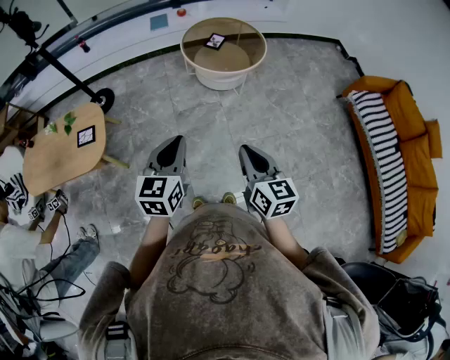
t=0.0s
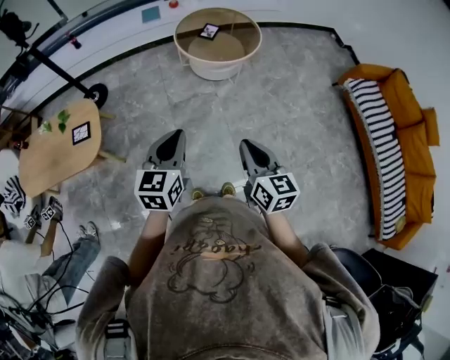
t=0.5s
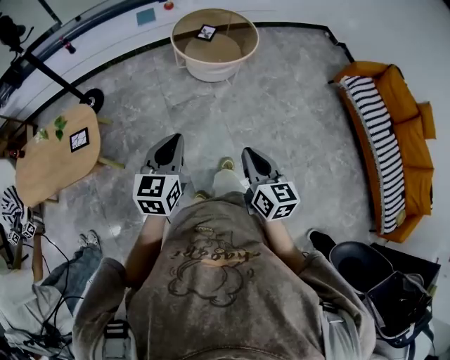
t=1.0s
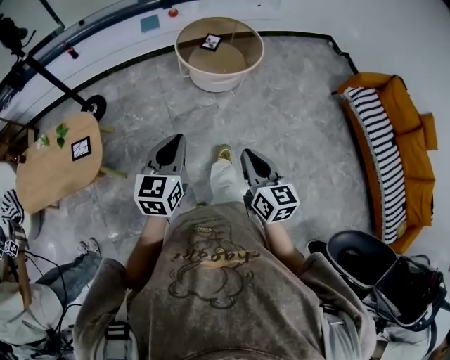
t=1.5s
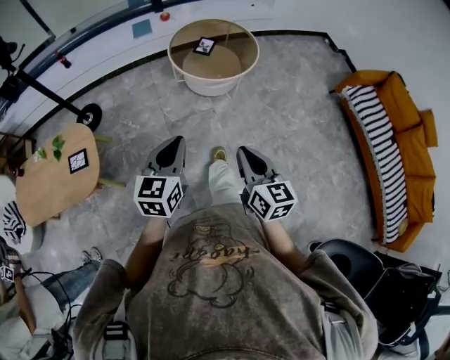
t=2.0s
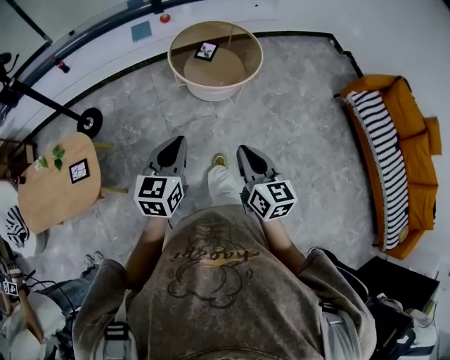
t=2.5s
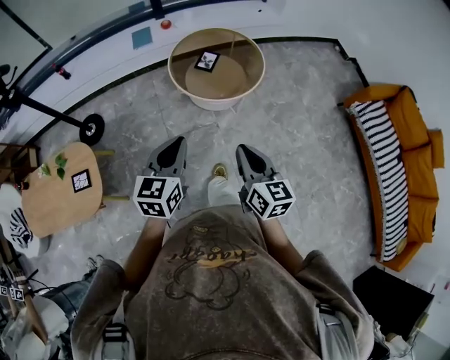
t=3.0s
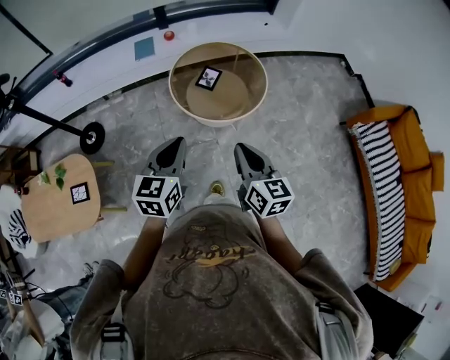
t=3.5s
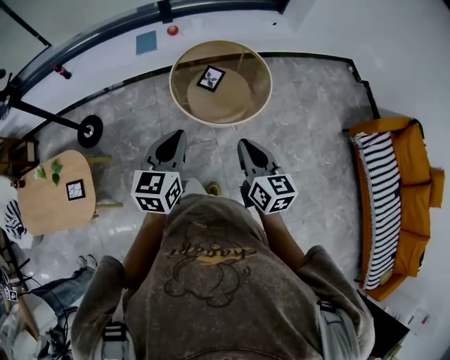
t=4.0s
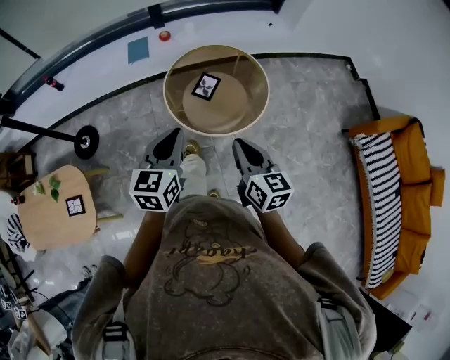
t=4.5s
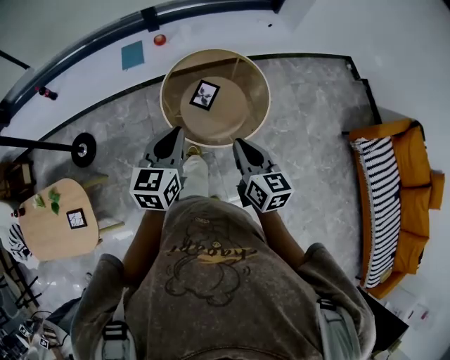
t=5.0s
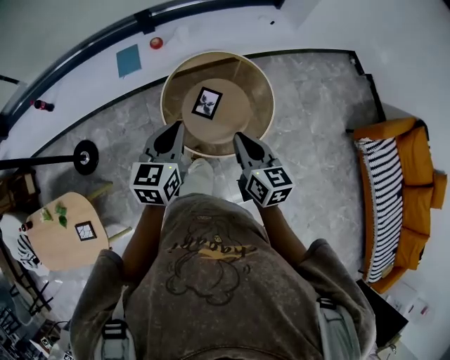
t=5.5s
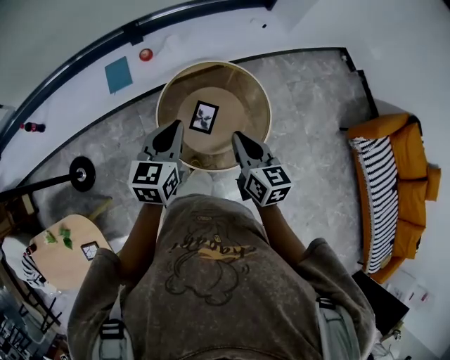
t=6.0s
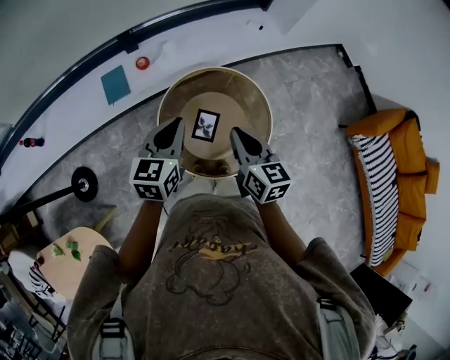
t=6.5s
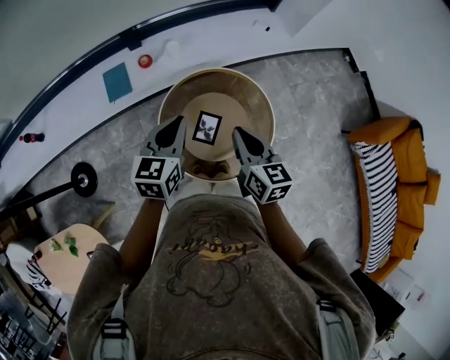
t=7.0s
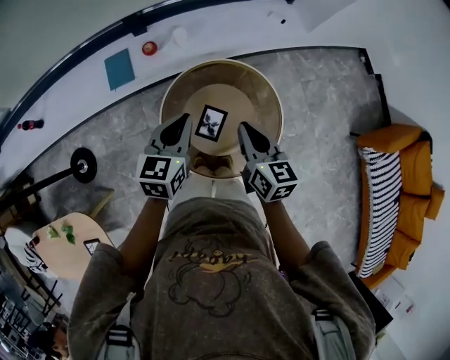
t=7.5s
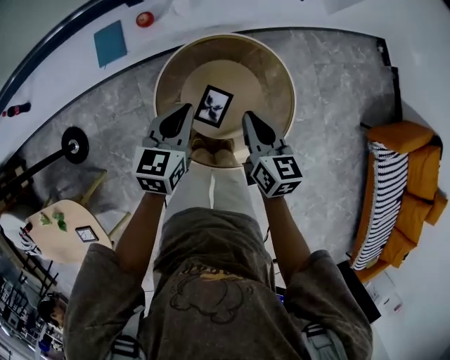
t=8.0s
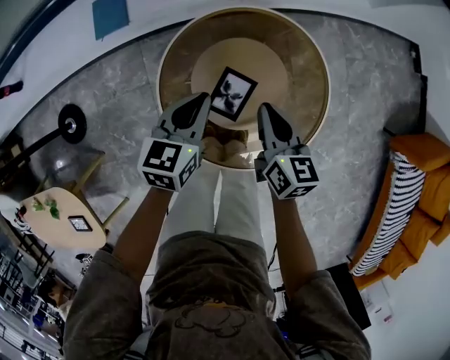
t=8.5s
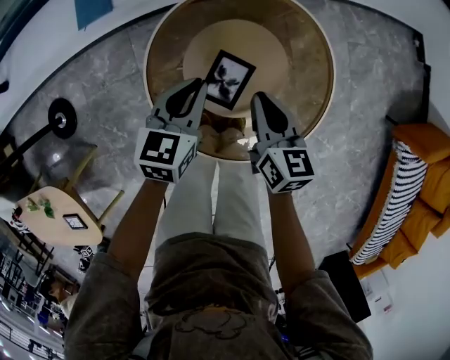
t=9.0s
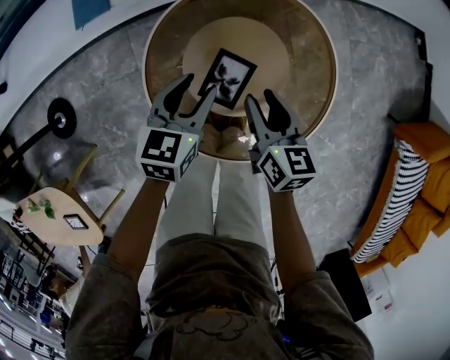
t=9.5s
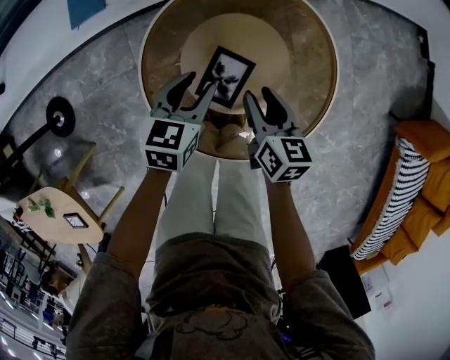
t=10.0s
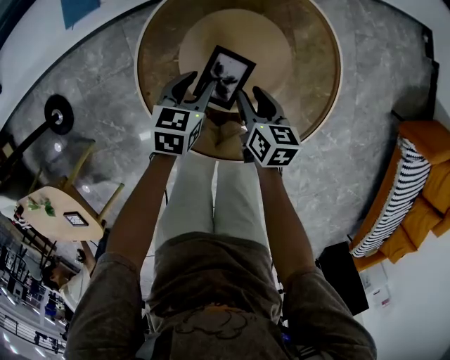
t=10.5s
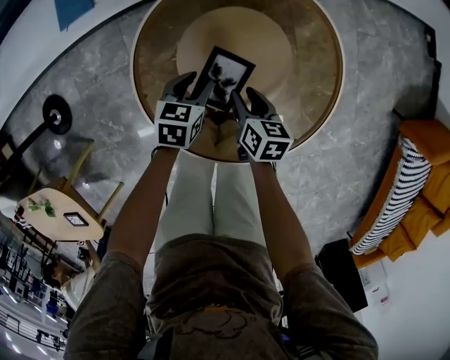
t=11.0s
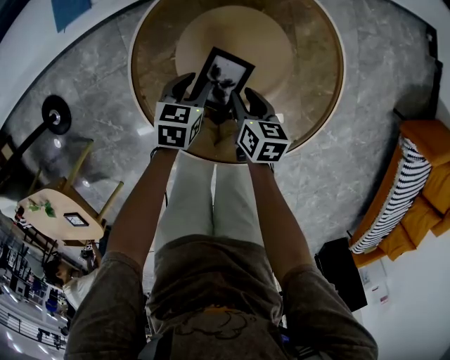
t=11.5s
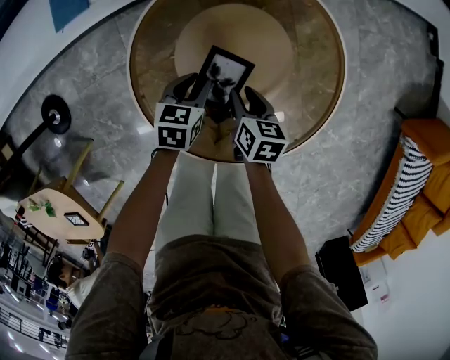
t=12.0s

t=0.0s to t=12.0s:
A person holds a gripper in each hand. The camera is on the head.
t=0.0s to t=2.0s: Both grippers travel together forward, approximately 10 cm.
t=2.0s to t=4.0s: Both grippers travel together forward, roughly 30 cm.
t=4.0s to t=6.0s: The grippers both shift forward by approximately 35 cm.
t=6.0s to t=8.0s: The right gripper heads forward and downward, covering some 20 cm. The left gripper heads downward and forward, covering about 20 cm.
t=8.0s to t=10.0s: Both grippers move downward, about 20 cm. The right gripper opens up, while the left gripper opens.
t=10.0s to t=12.0s: Both grippers move downward, some 10 cm.

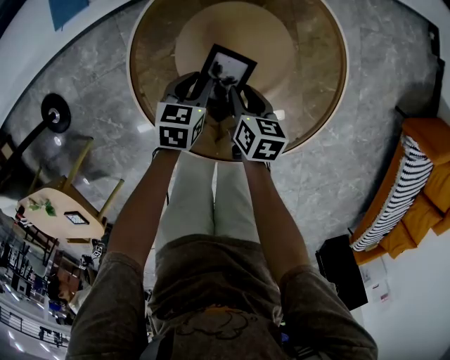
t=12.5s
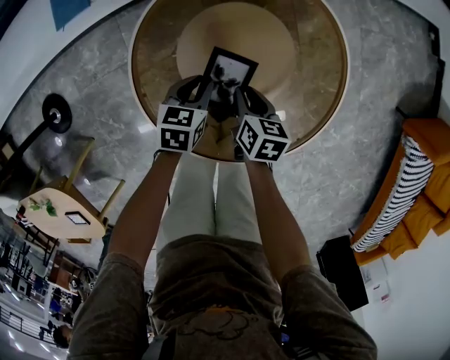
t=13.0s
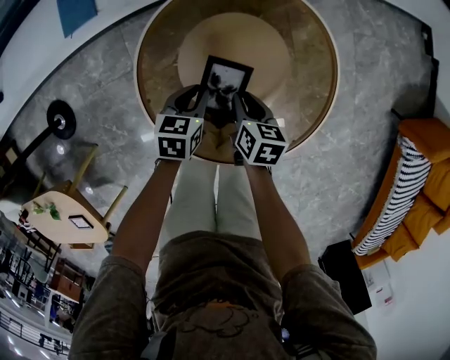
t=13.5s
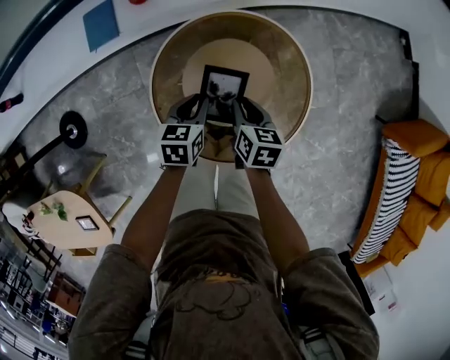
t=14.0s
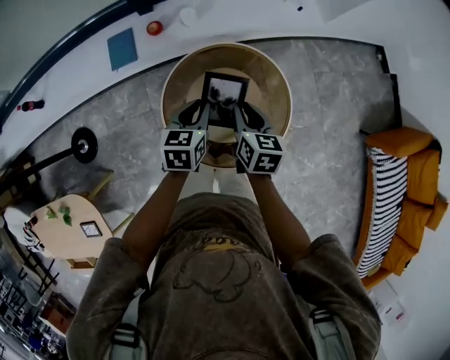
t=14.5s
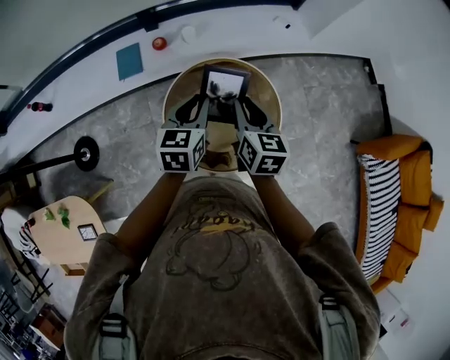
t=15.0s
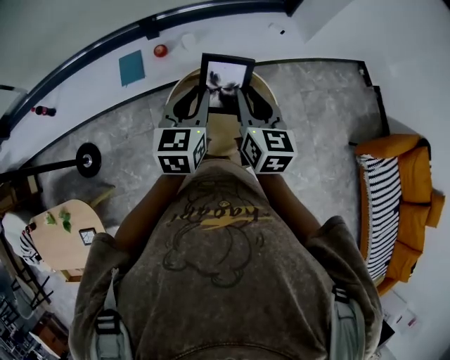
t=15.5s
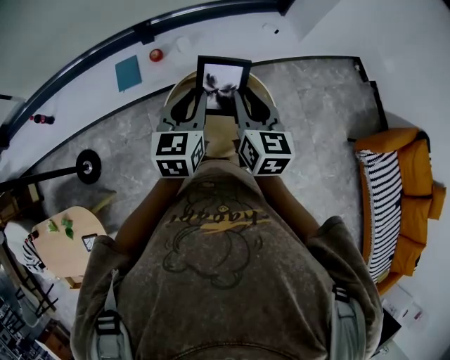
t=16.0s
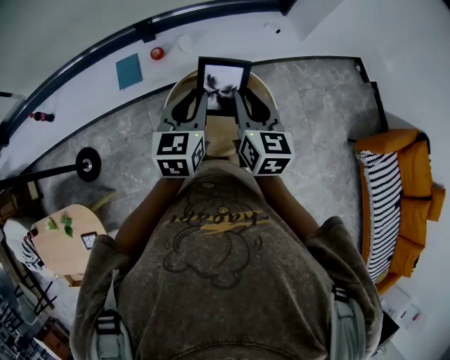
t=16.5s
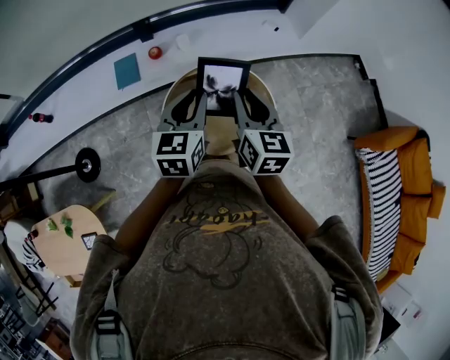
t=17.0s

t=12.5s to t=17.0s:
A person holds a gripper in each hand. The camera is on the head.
t=12.5s to t=14.5s: The two grippers go some 35 cm upward.
t=14.5s to t=17.0s: Both grippers move upward, approximately 20 cm. The left gripper swivels some 20 degrees, while the right gripper changes its angle by roughly 20 degrees.

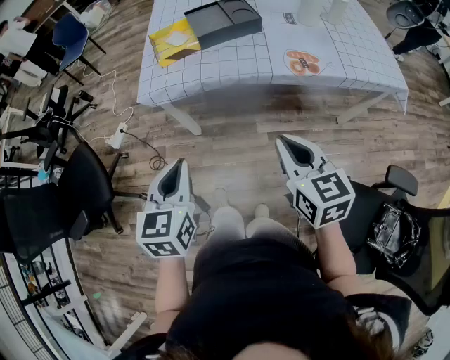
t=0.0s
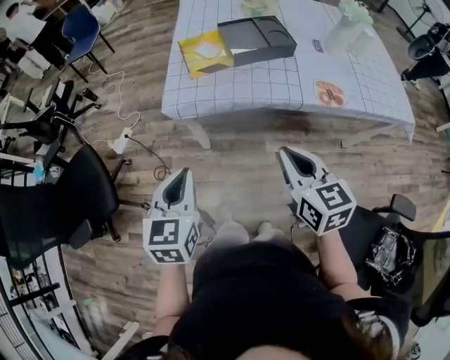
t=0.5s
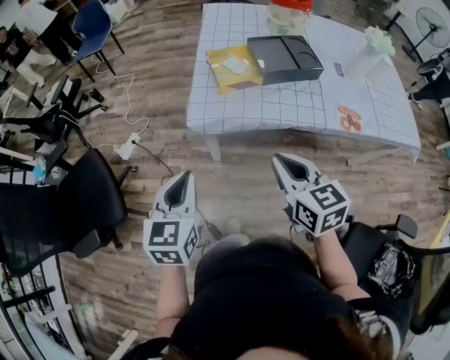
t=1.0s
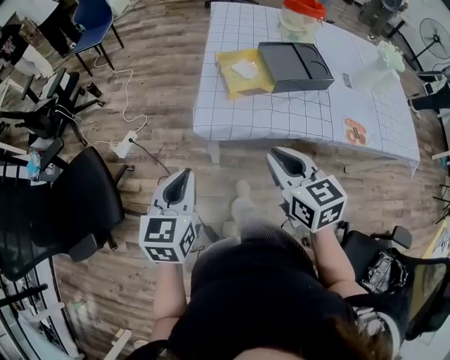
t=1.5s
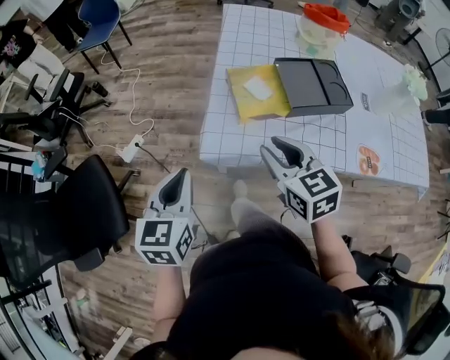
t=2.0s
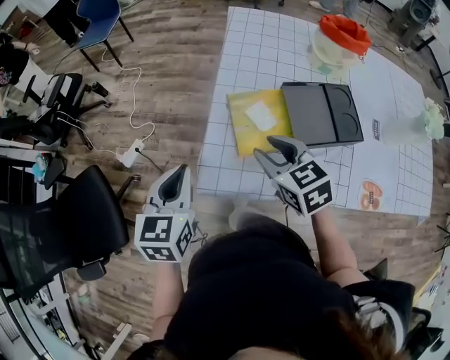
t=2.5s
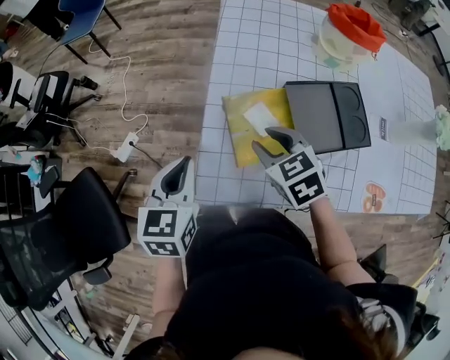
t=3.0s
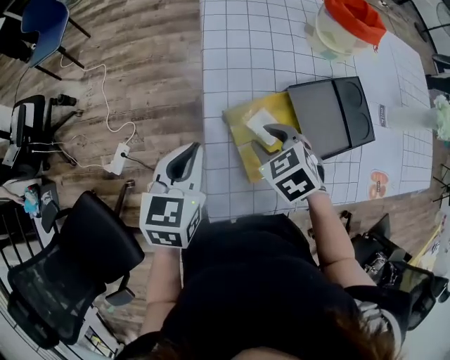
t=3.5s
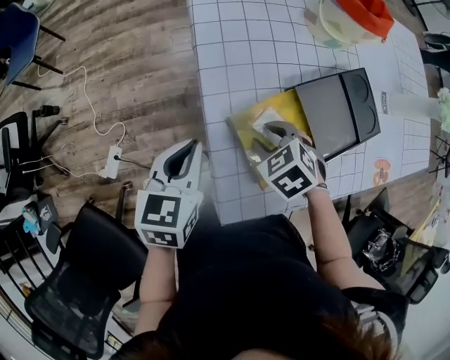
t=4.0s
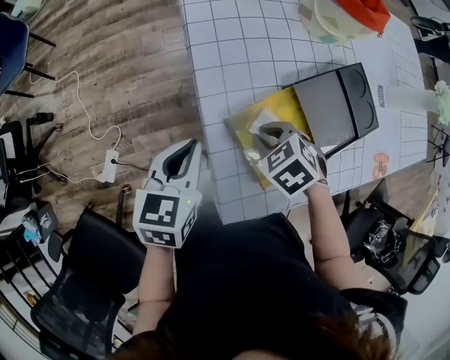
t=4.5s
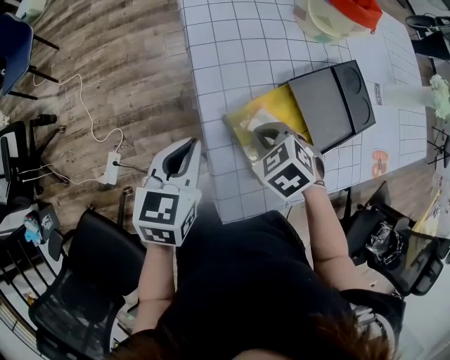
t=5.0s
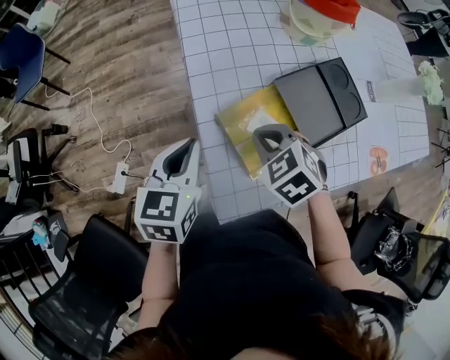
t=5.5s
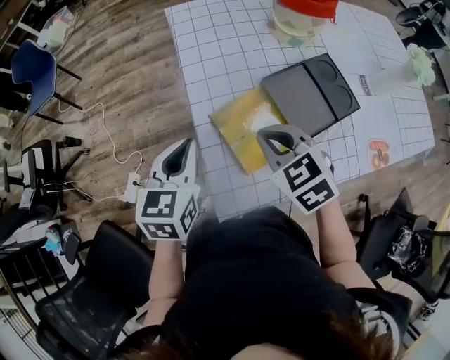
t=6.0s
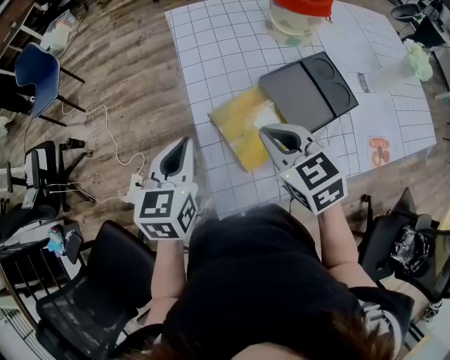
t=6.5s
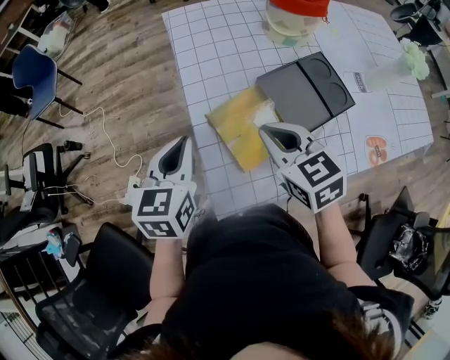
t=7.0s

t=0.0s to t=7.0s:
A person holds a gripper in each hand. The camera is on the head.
t=0.0s to t=2.0s: The grippers both shift forward and to the left by roughly 40 cm. The right gripper opens its fingers.
t=2.0s to t=3.5s: The right gripper is displaced forward and downward by about 25 cm, and points its fingers approximately 30 degrees further downward. Meanwhile the left gripper shifts about 30 cm forward.
t=3.5s to t=5.0s: The right gripper closes its fingers.
t=5.0s to t=7.0s: The left gripper heads upward, covering some 10 cm, while the right gripper moves upward, roughly 15 cm, and angles its fingers upward, by about 40 degrees.

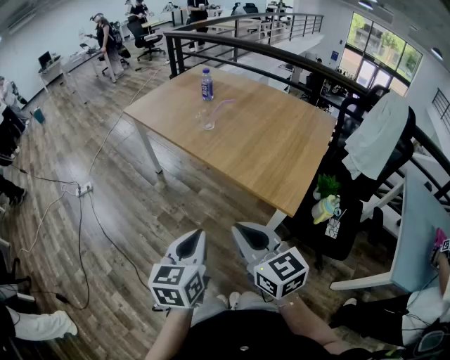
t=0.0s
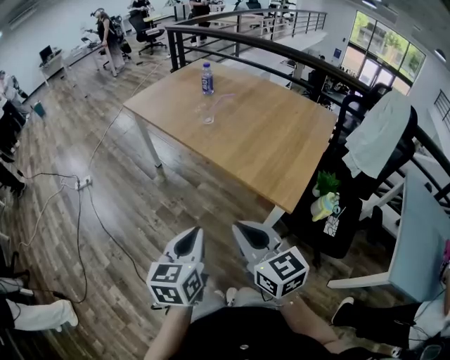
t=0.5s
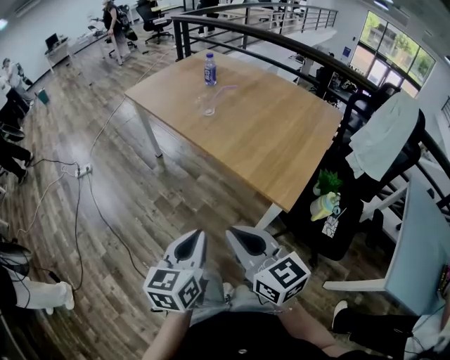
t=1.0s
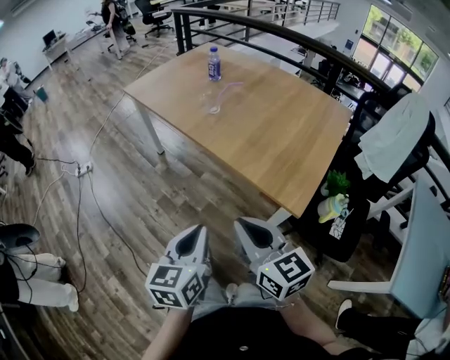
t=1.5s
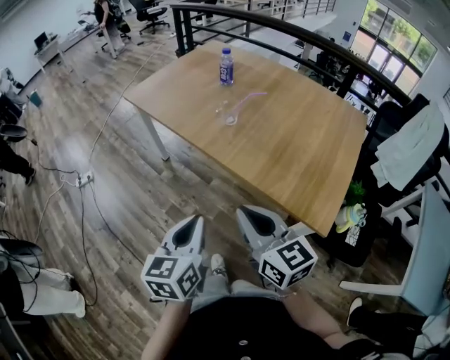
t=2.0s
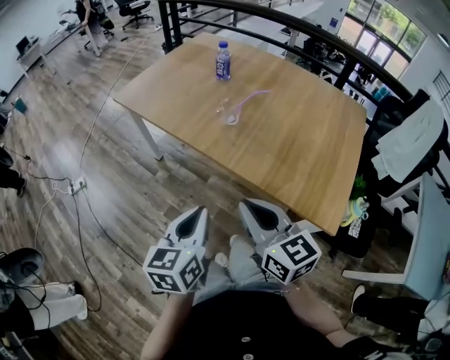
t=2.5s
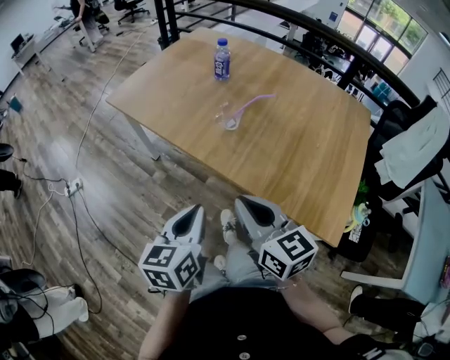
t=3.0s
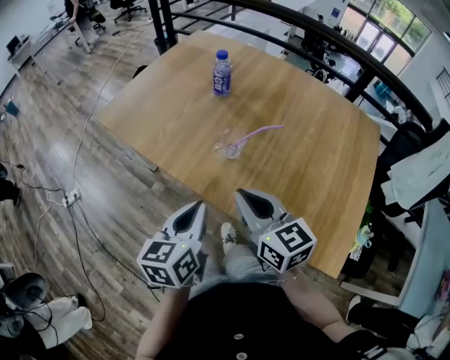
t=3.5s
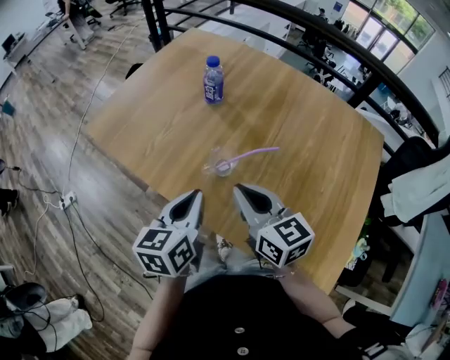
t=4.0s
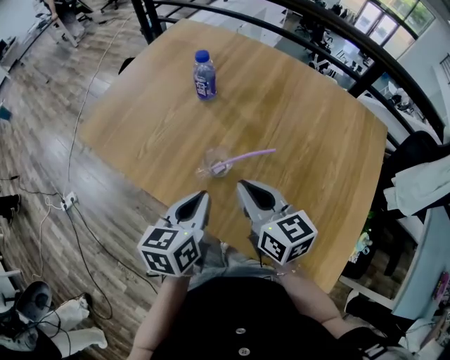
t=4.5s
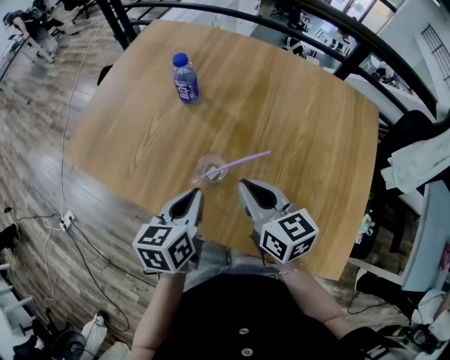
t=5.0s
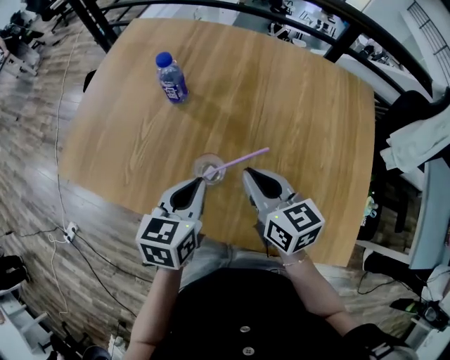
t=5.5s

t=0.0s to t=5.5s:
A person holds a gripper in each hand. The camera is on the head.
t=0.0s to t=2.0s: Both grippers move forward, roughly 20 cm.
t=2.0s to t=3.5s: Both grippers move forward, about 30 cm.
t=3.5s to t=5.5s: The right gripper shifts about 20 cm forward and to the right, and turns by about 20 degrees; the left gripper heads forward, covering roughly 20 cm, and swivels about 30 degrees.
